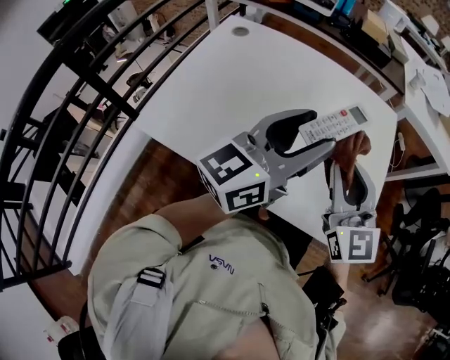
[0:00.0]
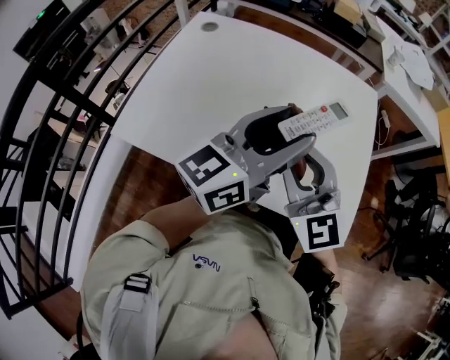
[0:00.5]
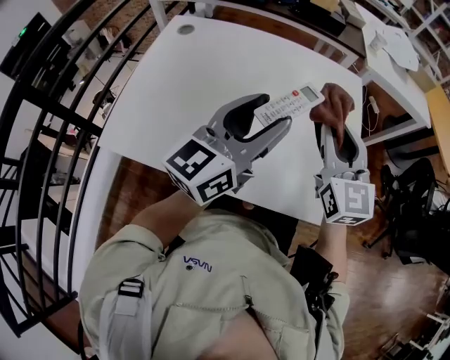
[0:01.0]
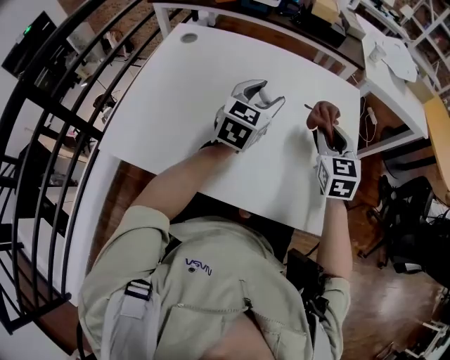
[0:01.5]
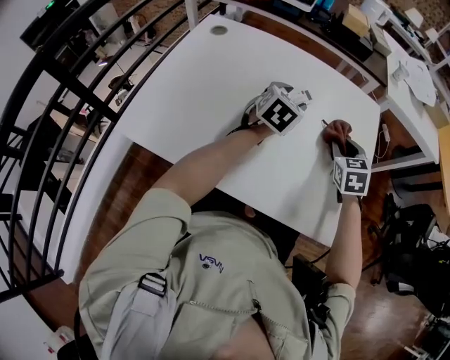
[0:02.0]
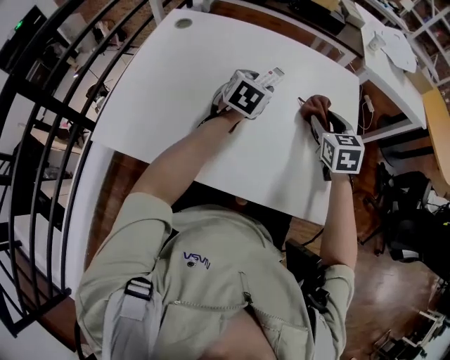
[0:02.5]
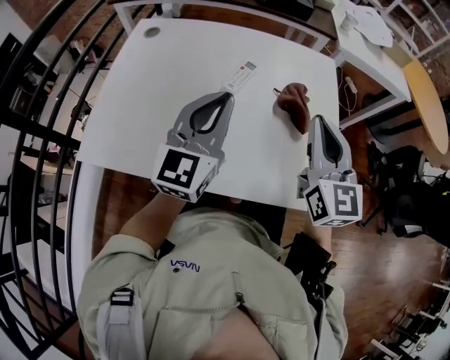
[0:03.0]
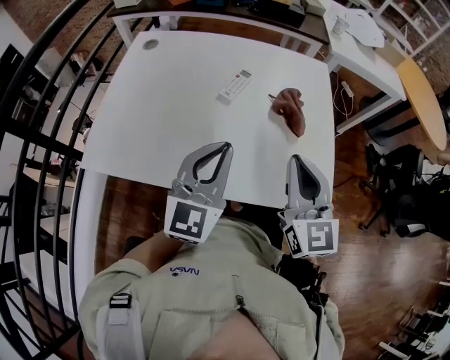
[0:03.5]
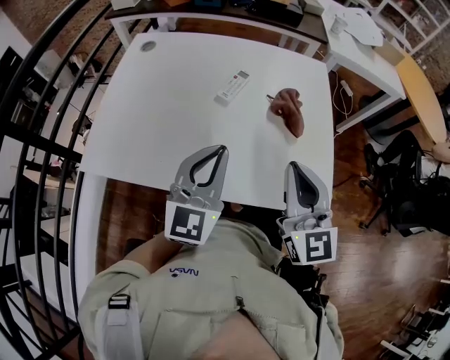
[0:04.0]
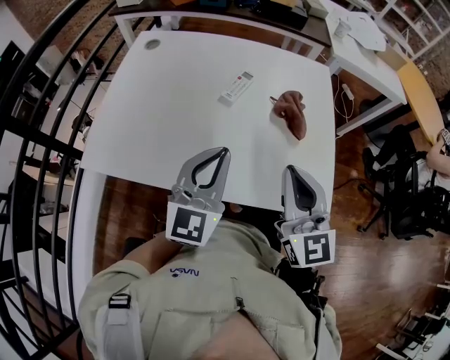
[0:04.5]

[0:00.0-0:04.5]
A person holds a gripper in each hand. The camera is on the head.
0:00.0 to 0:02.0: The left gripper moves forward and downward, roughly 25 cm, and tips its fingers downward by some 50 degrees. The right gripper shifts roughly 25 cm downward, forward and to the right, and points its fingers about 40 degrees further downward.
0:02.0 to 0:04.5: The right gripper shifts about 25 cm backward and upward, tilts its fingers approximately 40 degrees upward, and closes. Meanwhile the left gripper goes approximately 25 cm backward, tips its fingers upward by about 30 degrees, and closes up.

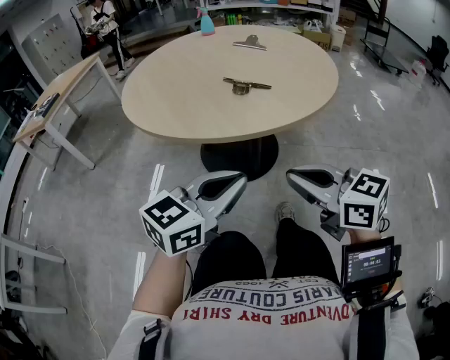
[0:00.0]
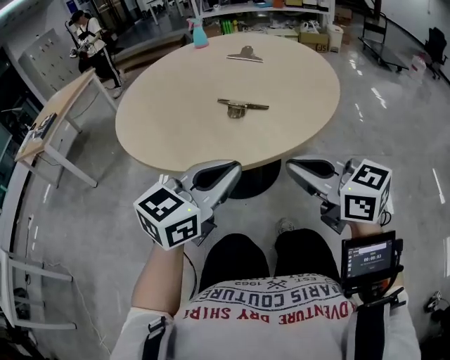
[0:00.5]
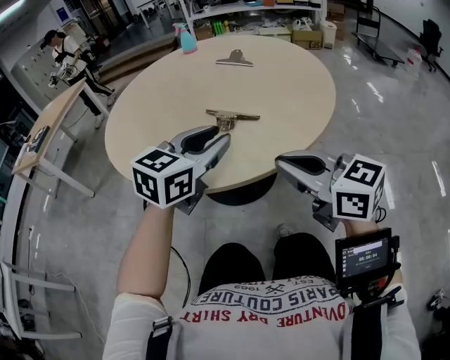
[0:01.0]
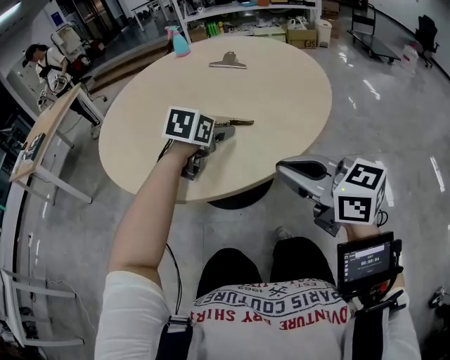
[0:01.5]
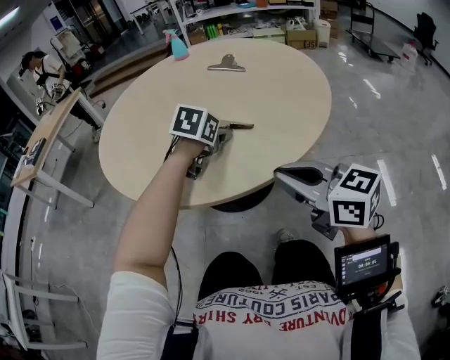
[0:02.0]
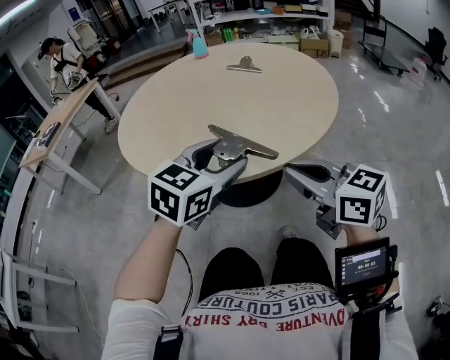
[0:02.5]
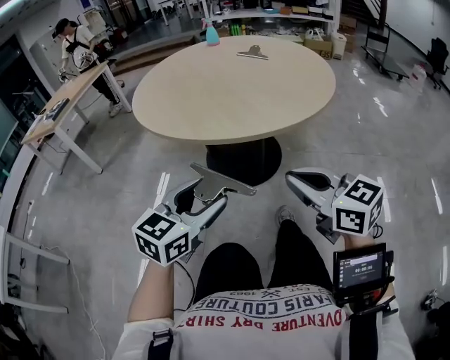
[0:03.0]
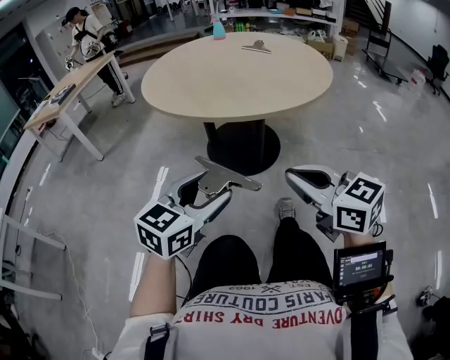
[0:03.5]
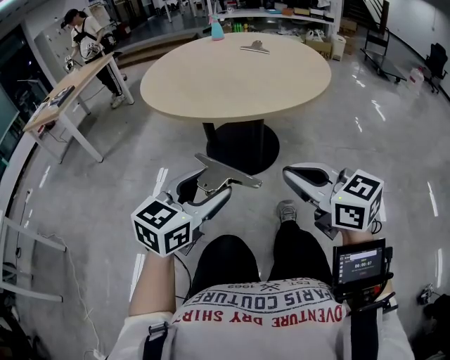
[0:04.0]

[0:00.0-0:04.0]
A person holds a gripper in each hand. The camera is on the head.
0:00.0 to 0:02.0: The right gripper goes about 15 cm forward, while the left gripper is displaced forward by roughly 35 cm, tilts its fingers about 40 degrees downward, and opens.
0:02.0 to 0:04.0: The right gripper shifts roughly 25 cm backward. Meanwhile the left gripper travels backward by some 50 cm, and points its fingers roughly 30 degrees further upward.

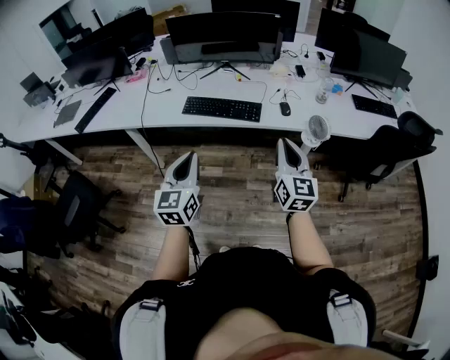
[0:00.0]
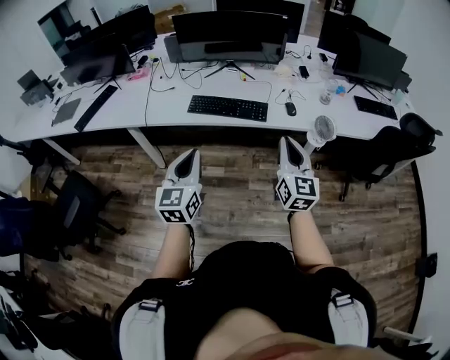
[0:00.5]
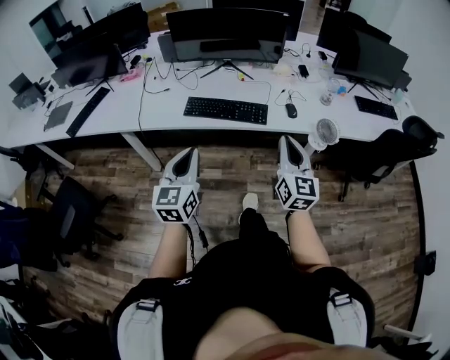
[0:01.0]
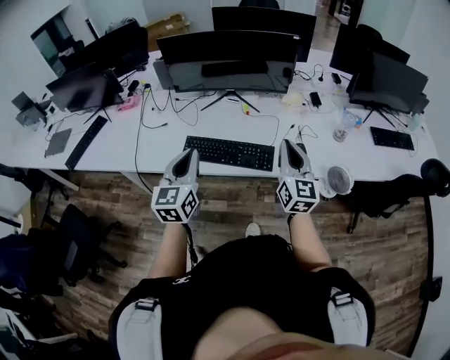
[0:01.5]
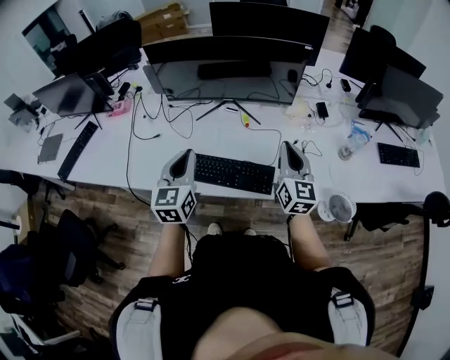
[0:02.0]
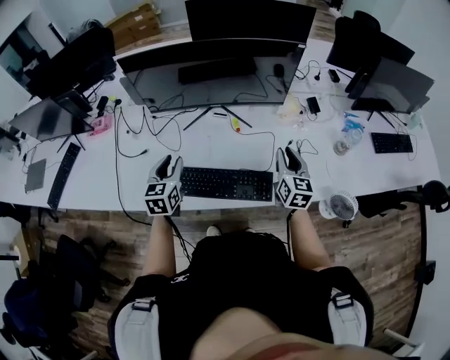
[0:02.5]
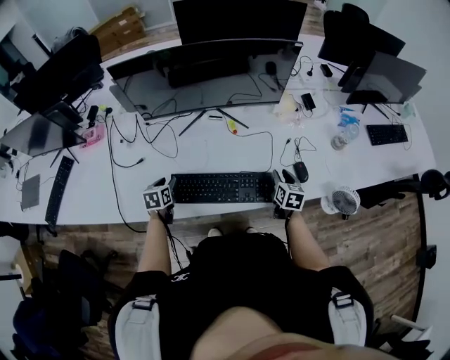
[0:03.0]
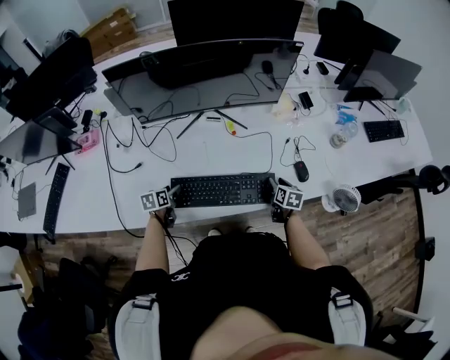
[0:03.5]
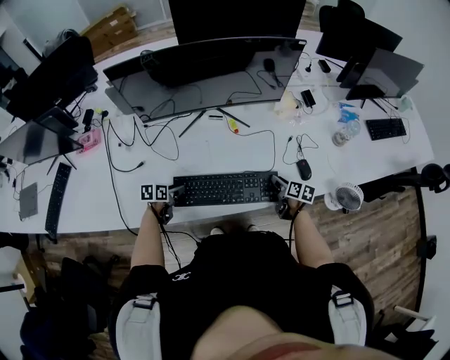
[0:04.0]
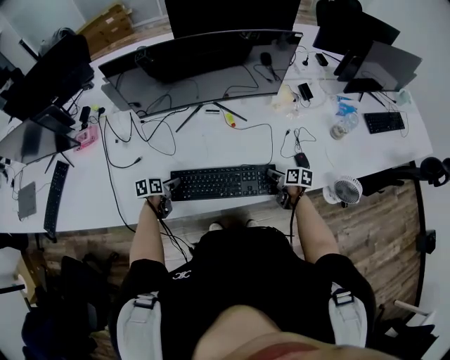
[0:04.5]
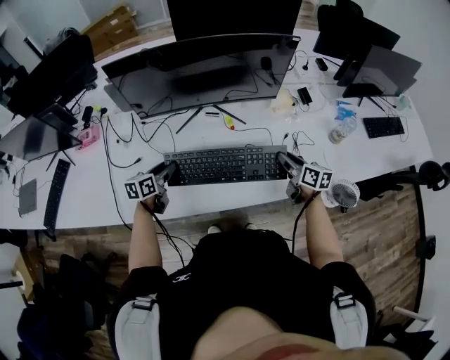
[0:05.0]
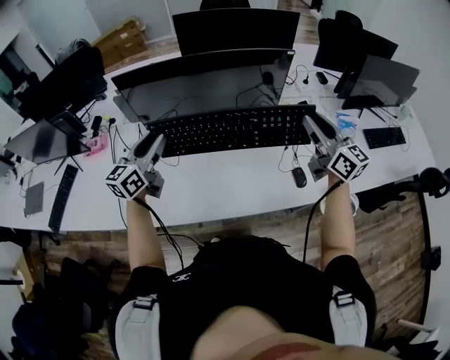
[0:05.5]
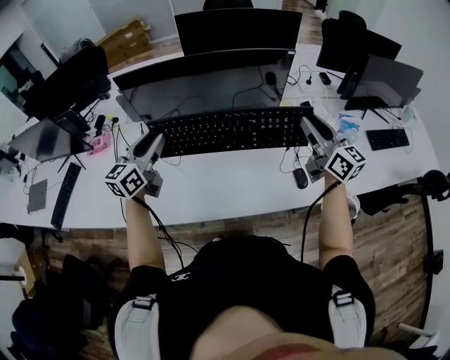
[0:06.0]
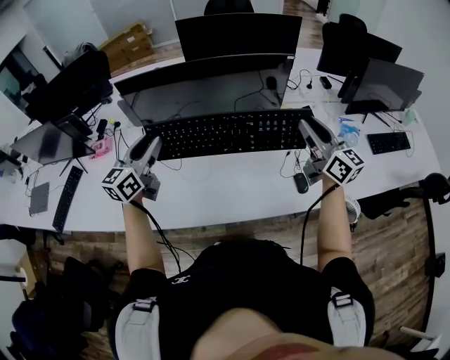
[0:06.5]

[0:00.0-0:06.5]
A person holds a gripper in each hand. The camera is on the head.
0:00.0 to 0:02.0: The two grippers travel together, forward, about 40 cm.
0:02.0 to 0:04.5: The right gripper moves downward, approximately 35 cm, tips its fingers downward by roughly 40 degrees, and opens up. The left gripper goes about 40 cm downward and to the left, tilts its fingers approximately 40 degrees downward, and opens up.
0:04.5 to 0:06.5: The two grippers go about 40 cm upward. The right gripper tips its fingers upward by roughly 50 degrees. The left gripper tilts its fingers some 50 degrees upward.

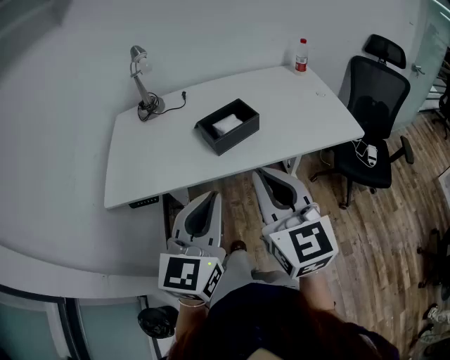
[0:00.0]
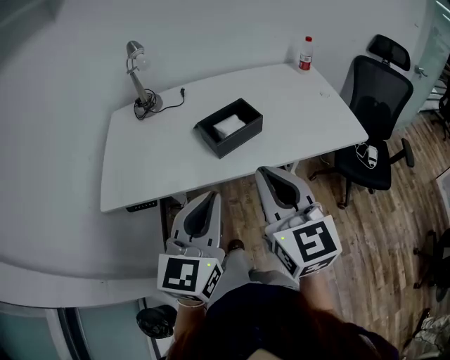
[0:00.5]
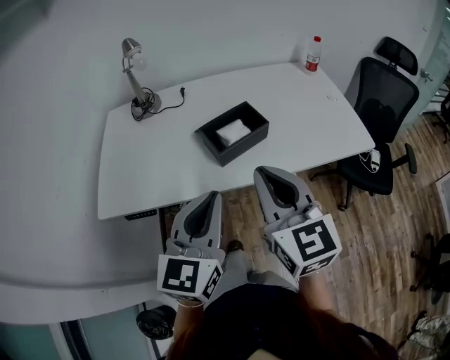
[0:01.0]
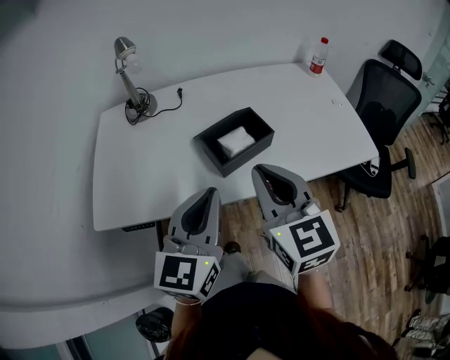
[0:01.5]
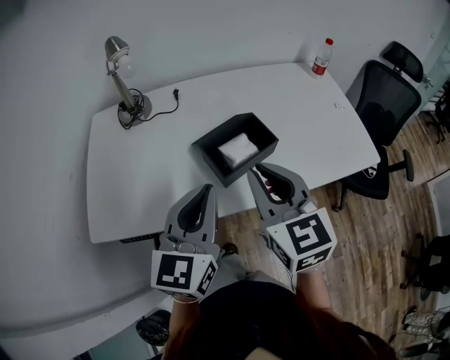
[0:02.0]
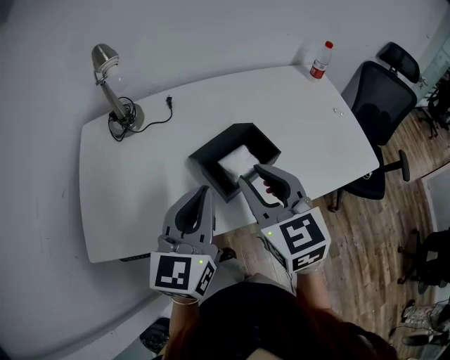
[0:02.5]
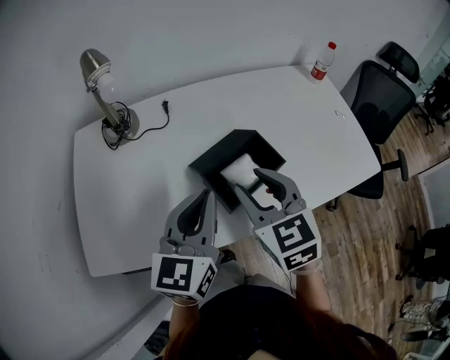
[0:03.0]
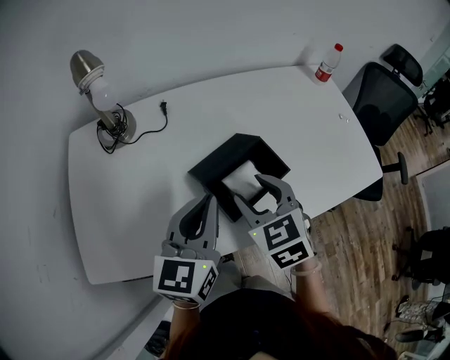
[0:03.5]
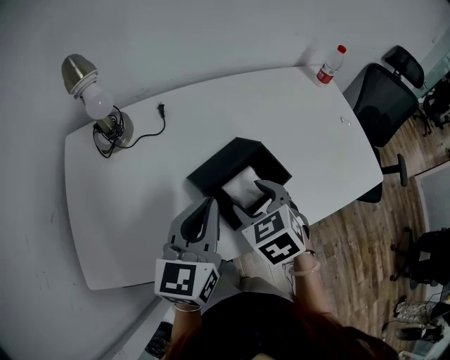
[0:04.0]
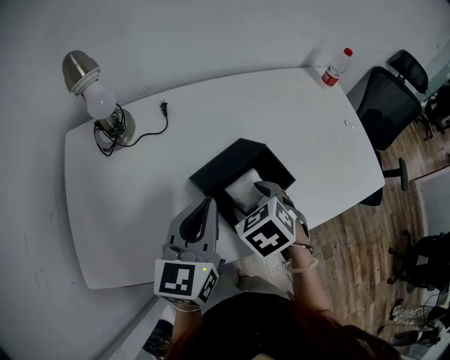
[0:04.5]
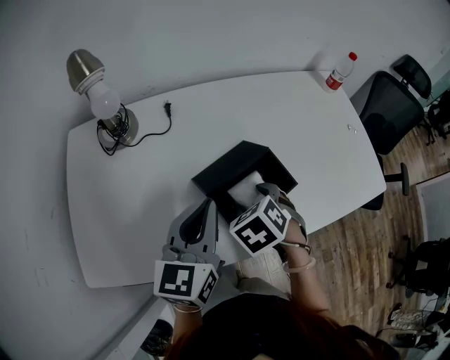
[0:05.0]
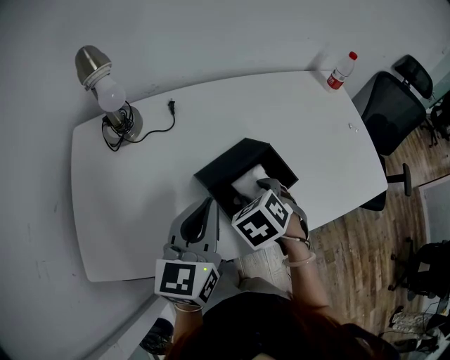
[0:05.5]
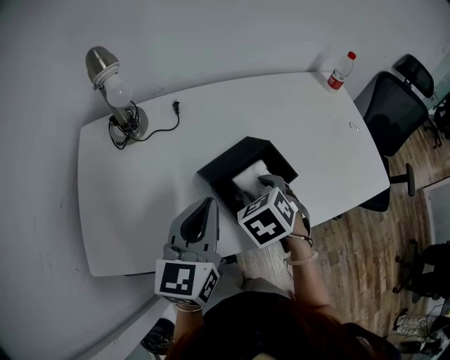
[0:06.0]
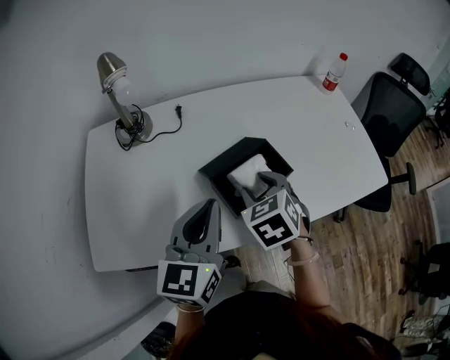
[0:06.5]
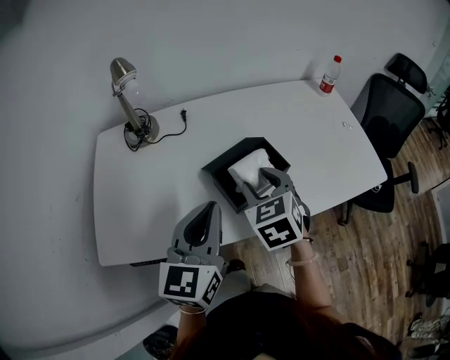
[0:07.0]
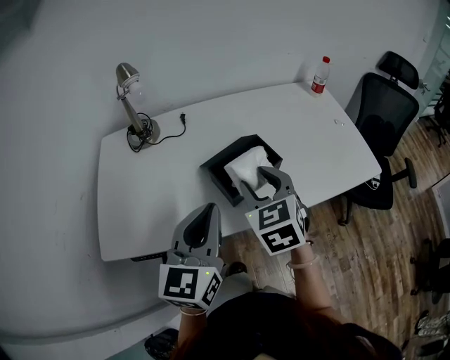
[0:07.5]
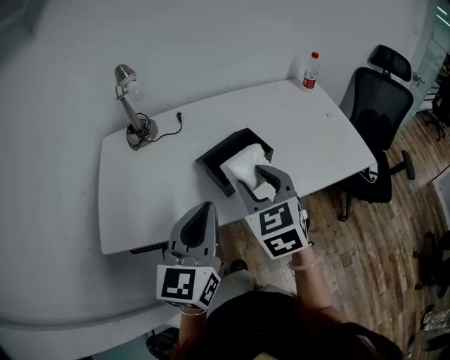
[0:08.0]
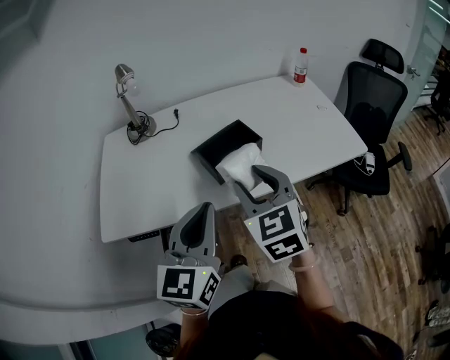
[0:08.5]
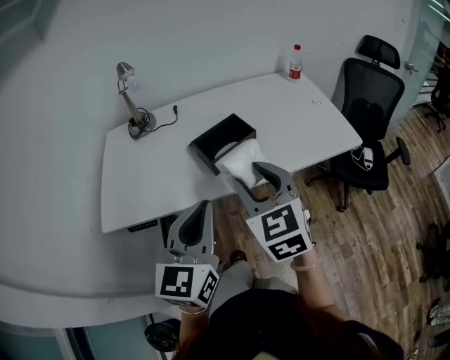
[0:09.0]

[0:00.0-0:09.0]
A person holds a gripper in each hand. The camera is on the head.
0:00.0 to 0:02.0: Both grippers travel together forward, approximately 20 cm.
0:02.0 to 0:04.5: The left gripper travels forward and downward by about 15 cm; the right gripper heads downward and forward, covering approximately 20 cm, tilts its fingers about 50 degrees downward, and opens.
0:04.5 to 0:07.0: The left gripper travels backward by roughly 10 cm, while the right gripper travels upward by roughly 10 cm, and changes its angle by approximately 30 degrees.
0:07.0 to 0:09.0: The left gripper travels backward by roughly 20 cm. Meanwhile the right gripper travels backward and upward by some 20 cm, and swivels about 20 degrees.

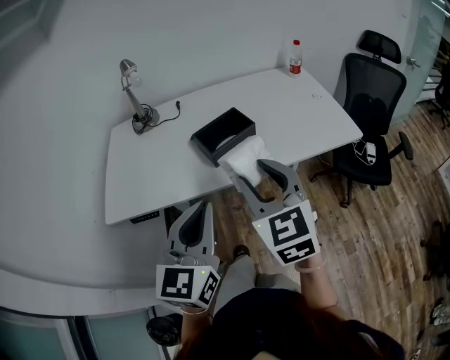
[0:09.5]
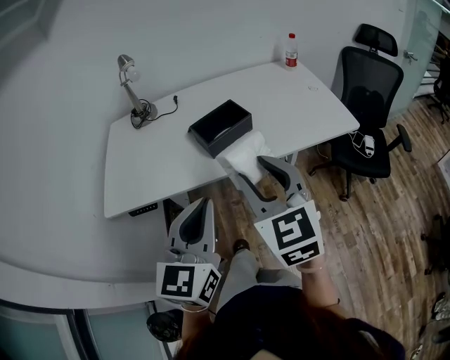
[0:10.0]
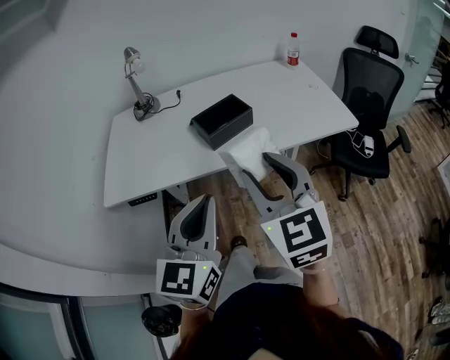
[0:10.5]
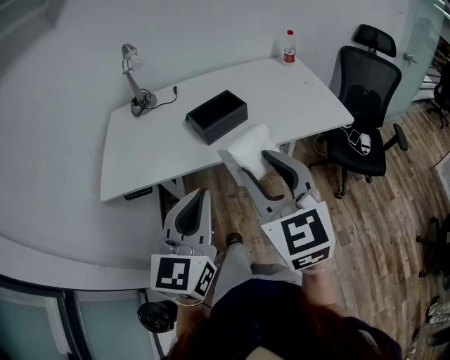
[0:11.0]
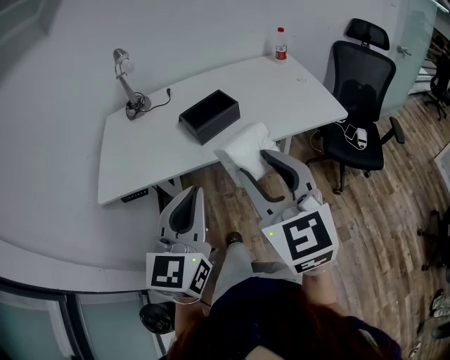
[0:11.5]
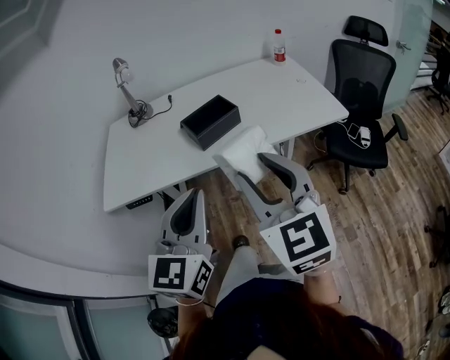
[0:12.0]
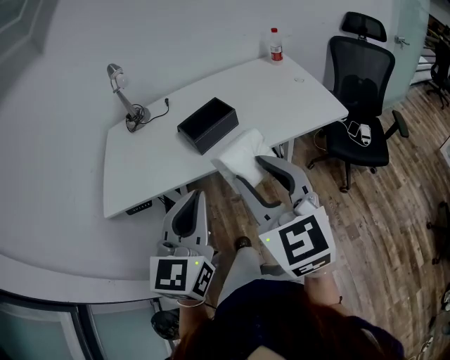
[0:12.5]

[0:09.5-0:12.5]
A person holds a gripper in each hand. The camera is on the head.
0:09.5 to 0:11.0: The two grippers go approximately 10 cm backward.
0:11.0 to 0:12.5: The grippers stay close to where they were, moving slightly.
